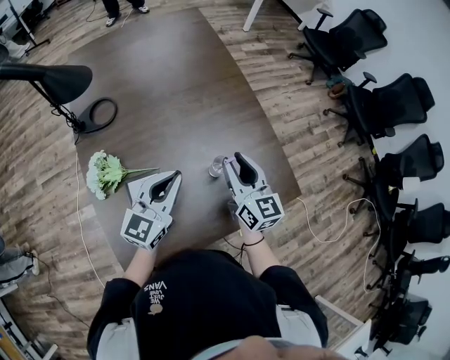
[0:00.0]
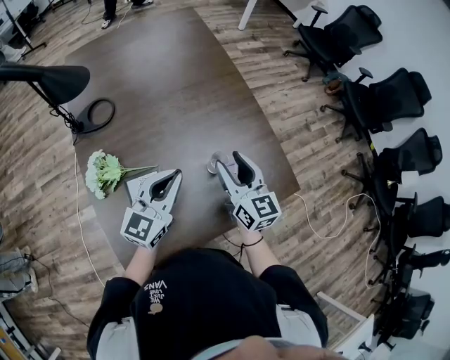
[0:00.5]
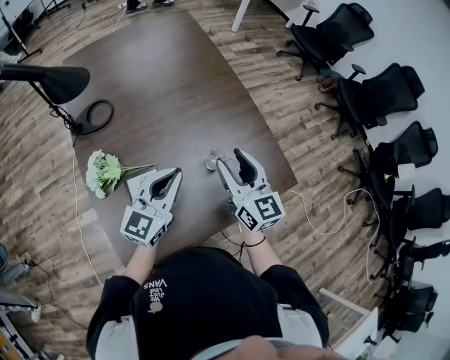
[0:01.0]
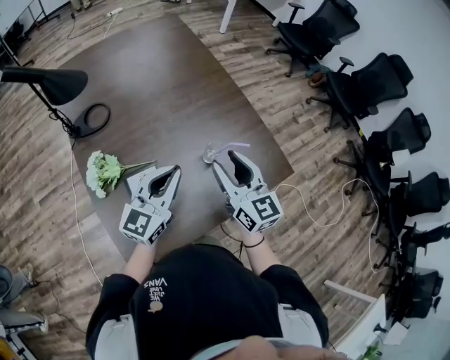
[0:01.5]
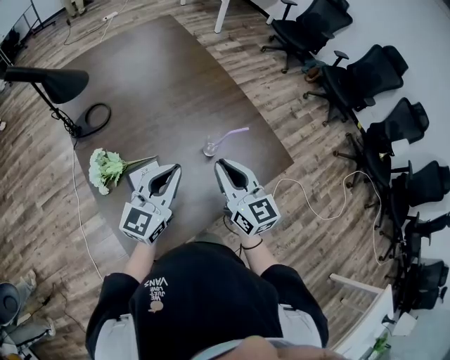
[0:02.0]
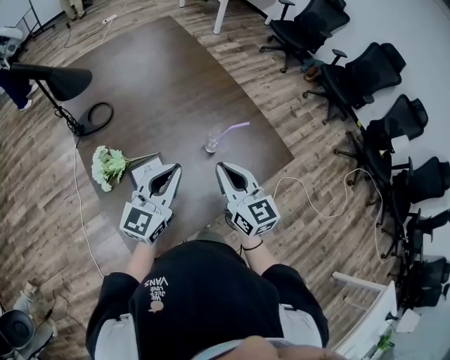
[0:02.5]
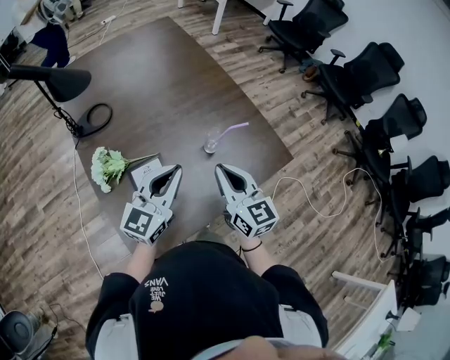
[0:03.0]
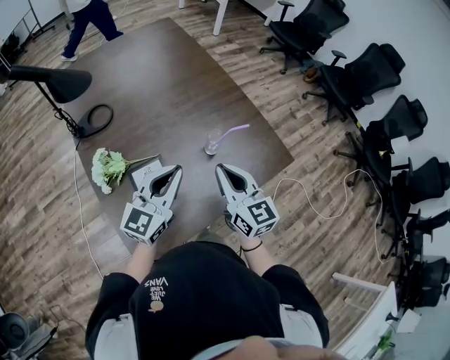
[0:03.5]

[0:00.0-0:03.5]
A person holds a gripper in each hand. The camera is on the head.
0:00.0 to 0:02.0: The left gripper shifts some 10 cm backward. The right gripper moves backward, some 10 cm.
0:02.0 to 0:03.5: There are only small adjustments of the grippers.

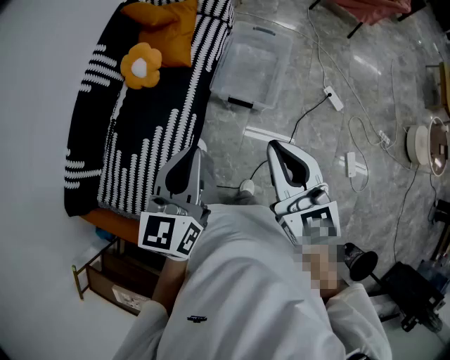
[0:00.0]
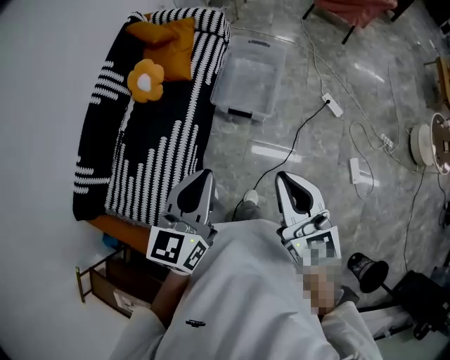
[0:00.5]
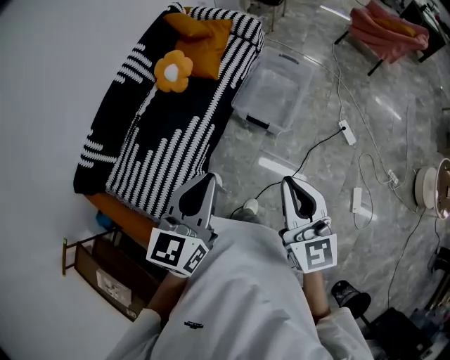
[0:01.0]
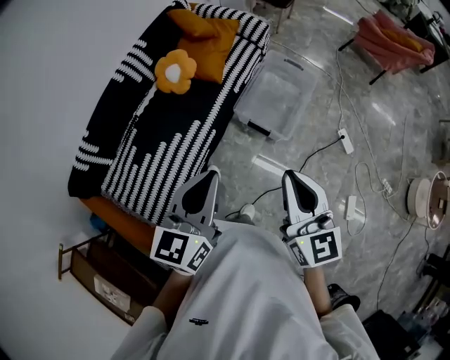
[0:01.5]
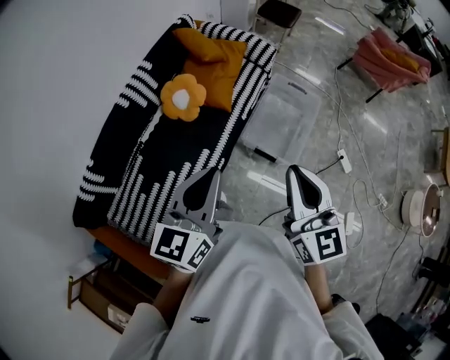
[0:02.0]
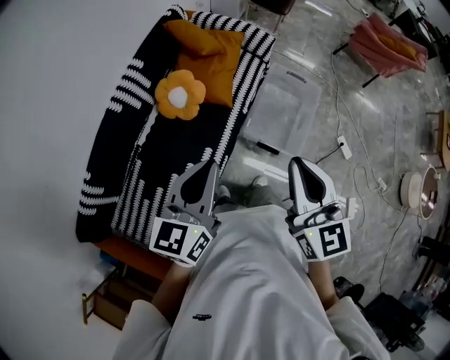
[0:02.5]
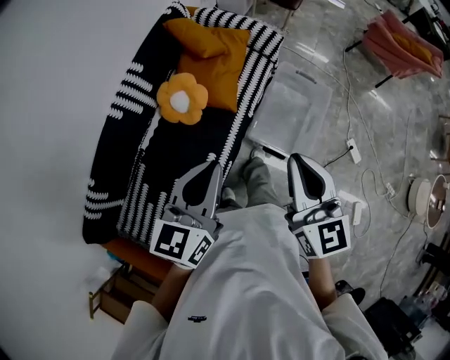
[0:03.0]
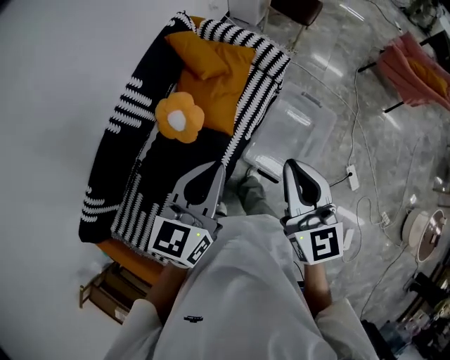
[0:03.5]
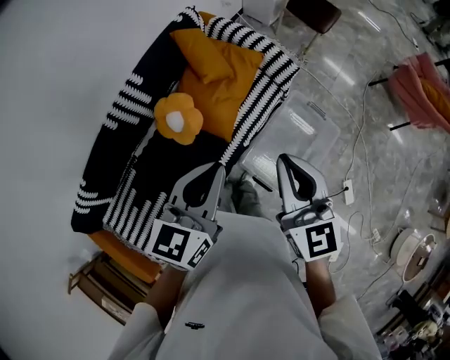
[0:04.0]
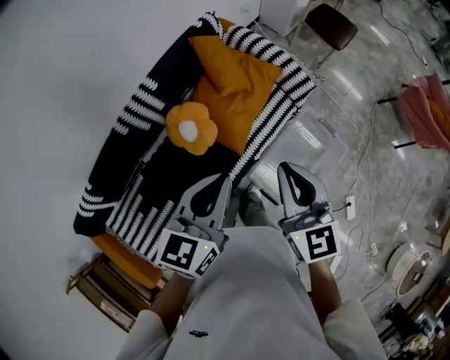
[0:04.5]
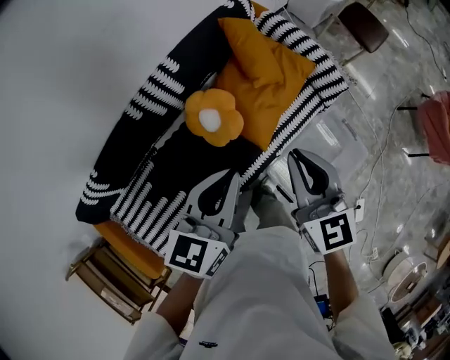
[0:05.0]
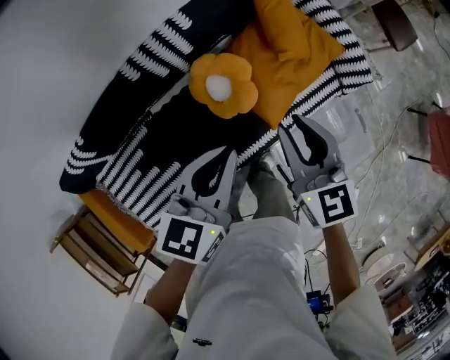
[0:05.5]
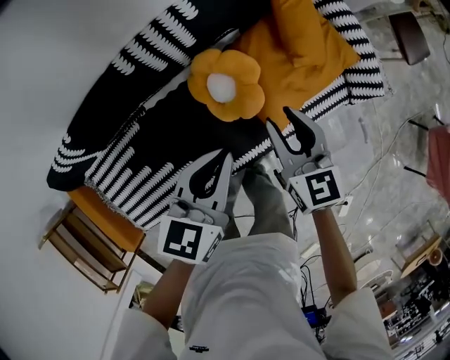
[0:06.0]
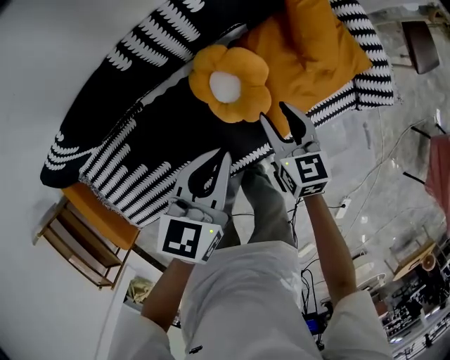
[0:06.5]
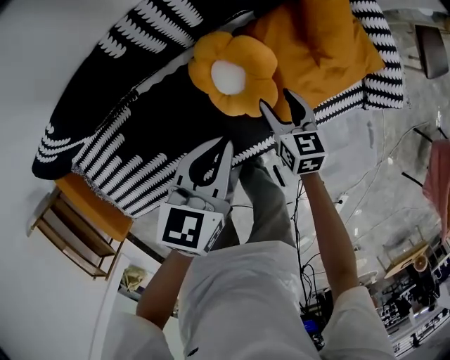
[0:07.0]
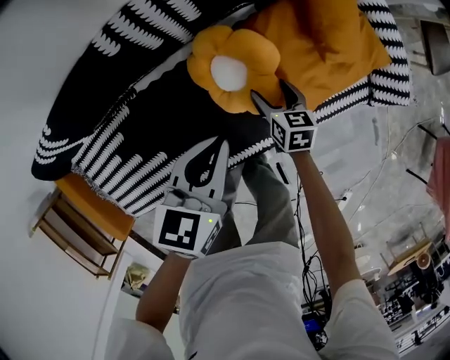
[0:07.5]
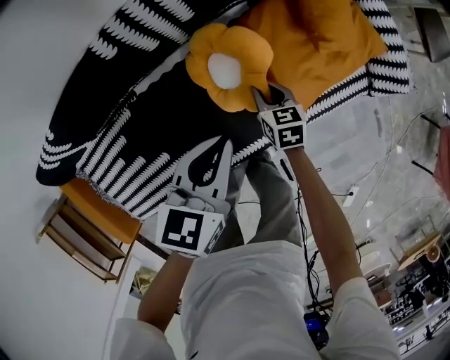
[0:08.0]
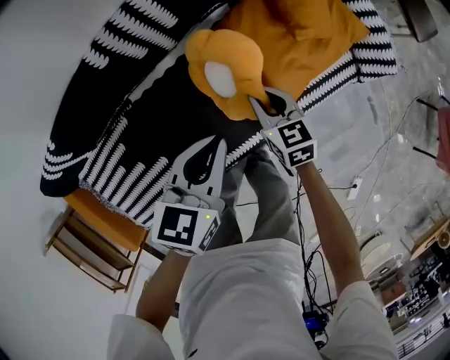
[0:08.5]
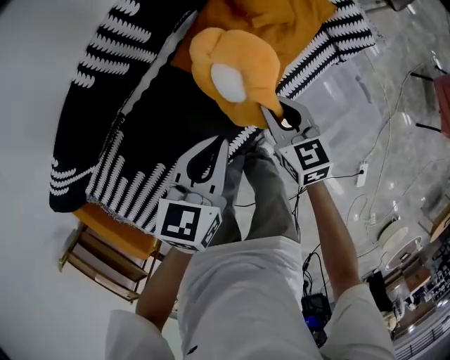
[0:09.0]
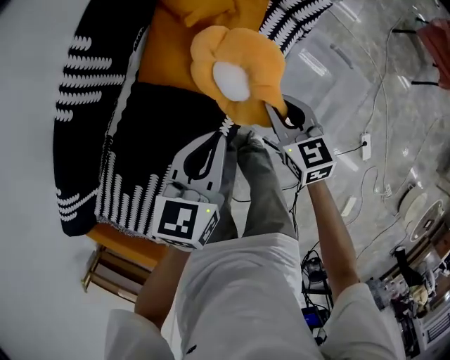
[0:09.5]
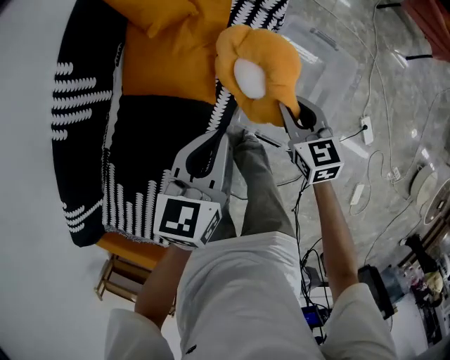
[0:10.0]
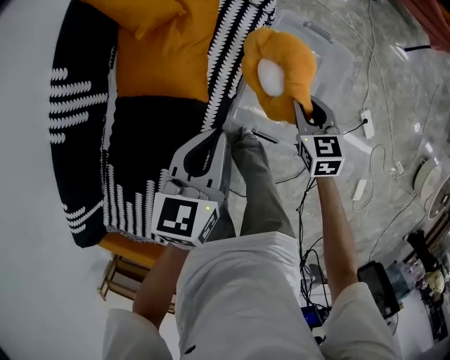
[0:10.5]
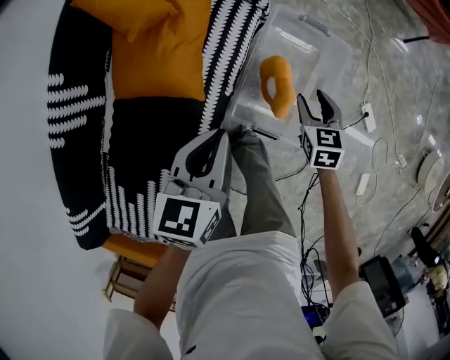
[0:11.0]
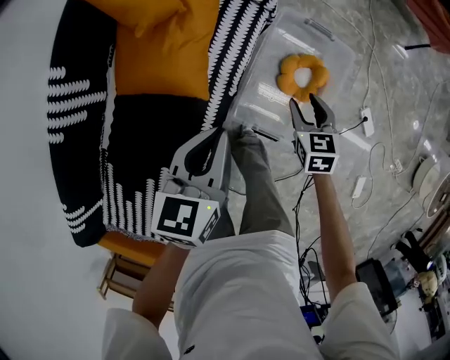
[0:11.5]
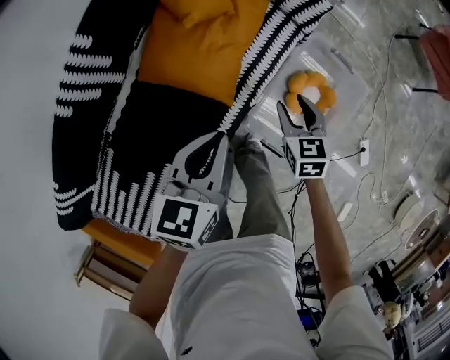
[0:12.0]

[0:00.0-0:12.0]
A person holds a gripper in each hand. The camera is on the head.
0:00.0 to 0:02.0: The left gripper travels to the left and forward by some 15 cm. Meanwhile the right gripper is displaced forward, to the left and upward by some 15 cm.
0:02.0 to 0:04.0: The grippers both shift forward by about 35 cm.
0:04.0 to 0:06.0: The right gripper heads downward, to the left and forward, covering about 40 cm, and changes its angle by about 30 degrees; the left gripper heads to the left, downward and forward, covering roughly 30 cm, and turns by approximately 20 degrees.
0:06.0 to 0:08.0: The right gripper goes about 30 cm downward, rotates some 20 degrees, and opens, then closes once more; the left gripper goes some 10 cm downward.
0:08.0 to 0:10.0: The left gripper changes place by some 30 cm, and changes its angle by roughly 30 degrees; the right gripper changes place by approximately 40 cm, and rotates some 30 degrees.
0:10.0 to 0:12.0: The right gripper reaches approximately 15 cm to the right, then returns; the left gripper goes roughly 5 cm to the left.

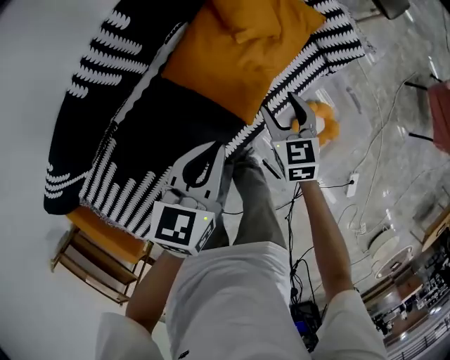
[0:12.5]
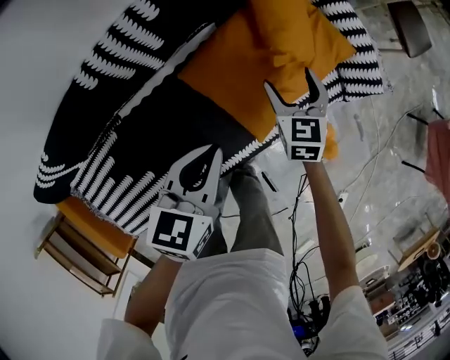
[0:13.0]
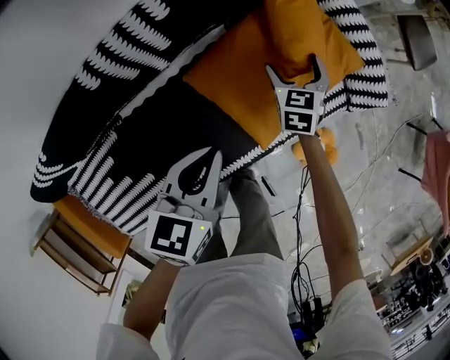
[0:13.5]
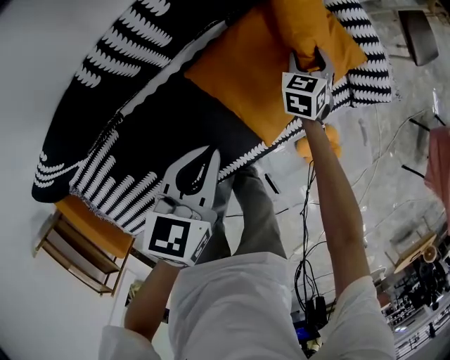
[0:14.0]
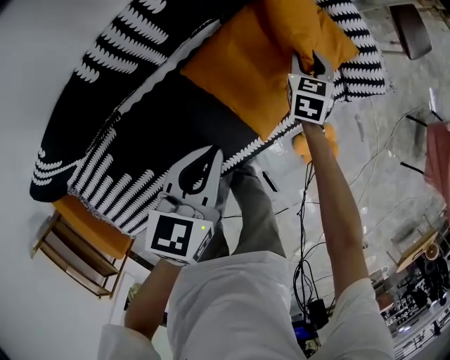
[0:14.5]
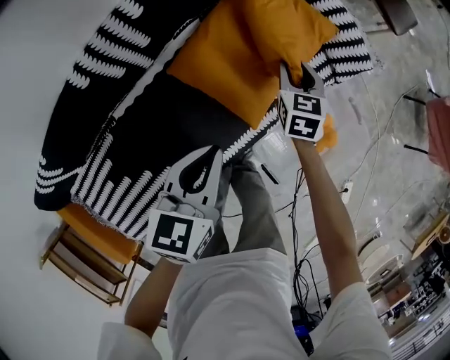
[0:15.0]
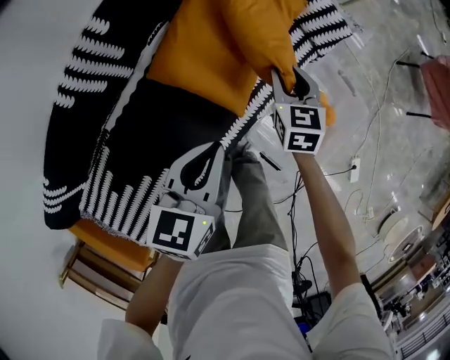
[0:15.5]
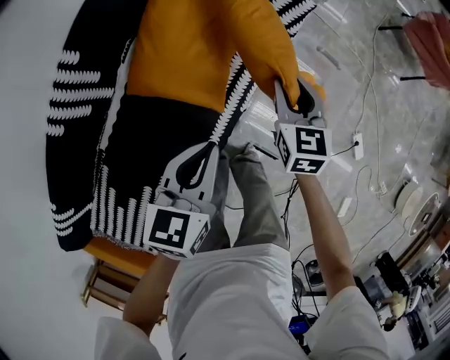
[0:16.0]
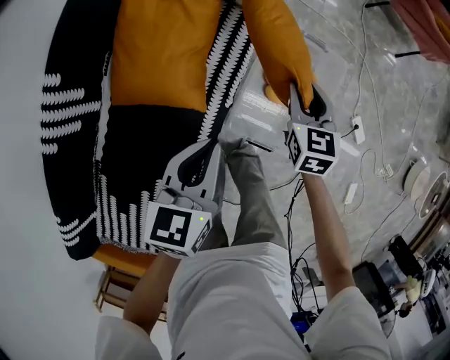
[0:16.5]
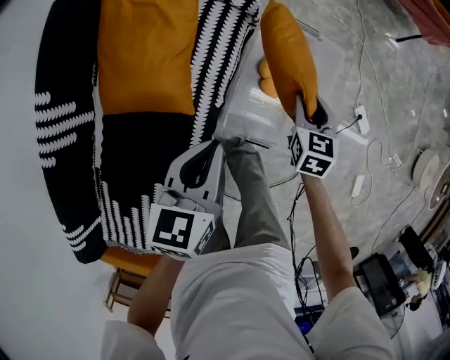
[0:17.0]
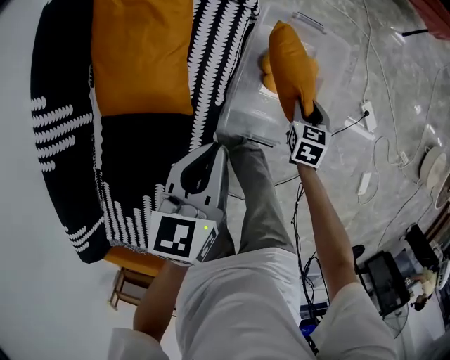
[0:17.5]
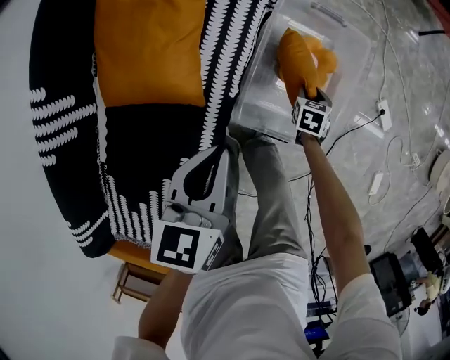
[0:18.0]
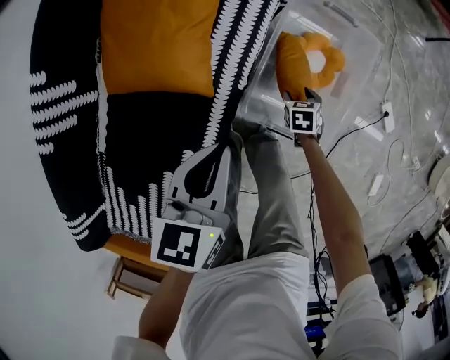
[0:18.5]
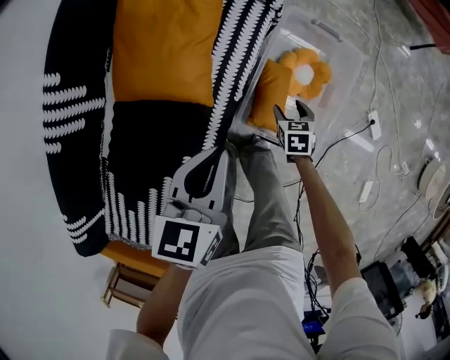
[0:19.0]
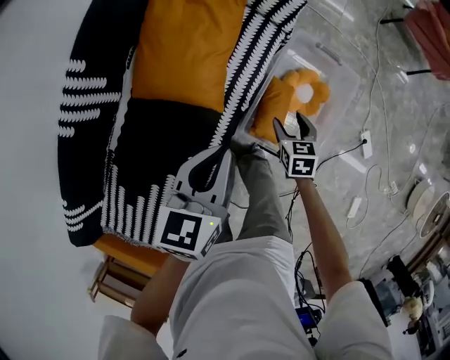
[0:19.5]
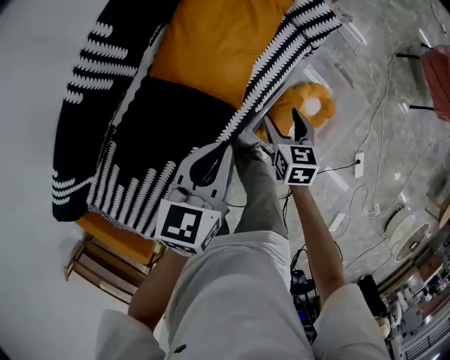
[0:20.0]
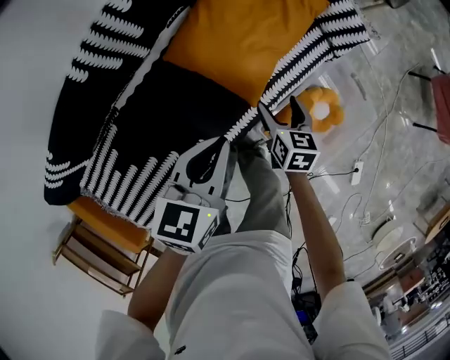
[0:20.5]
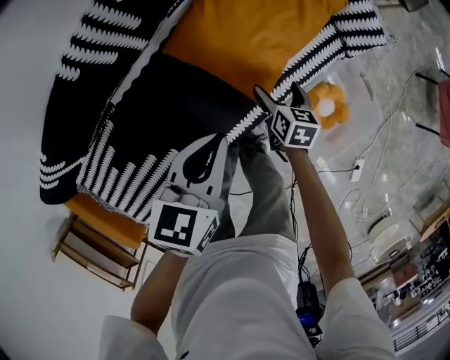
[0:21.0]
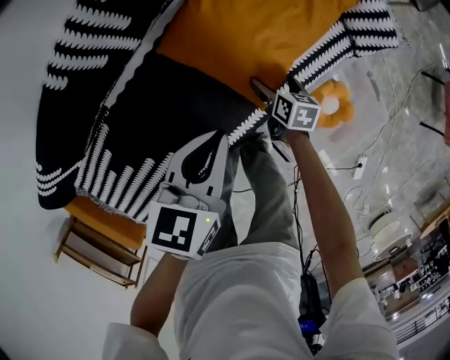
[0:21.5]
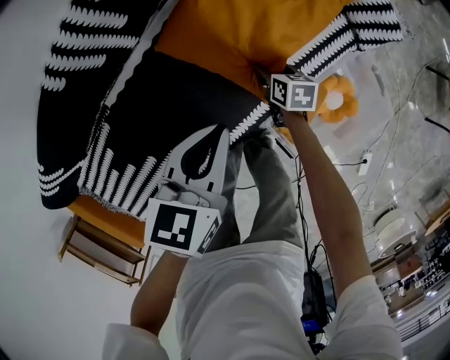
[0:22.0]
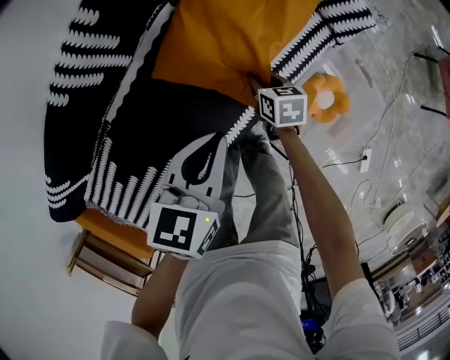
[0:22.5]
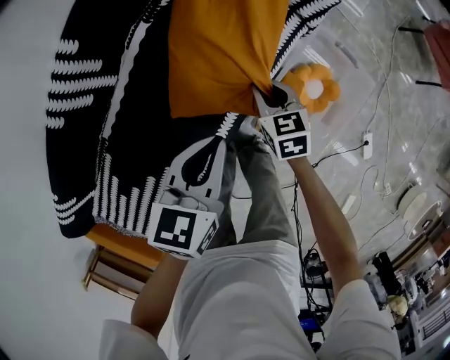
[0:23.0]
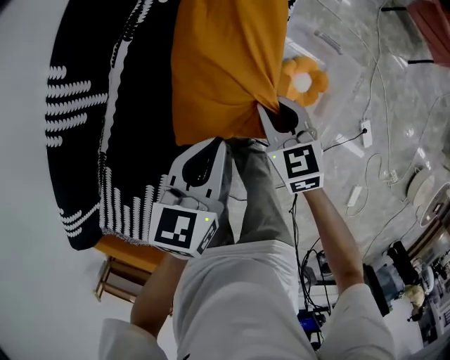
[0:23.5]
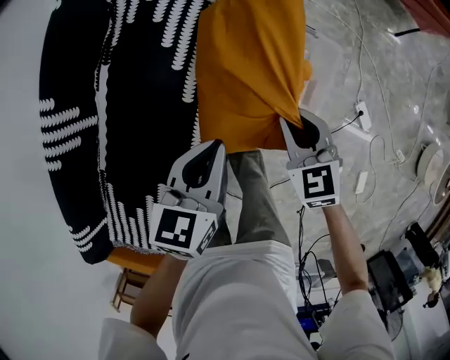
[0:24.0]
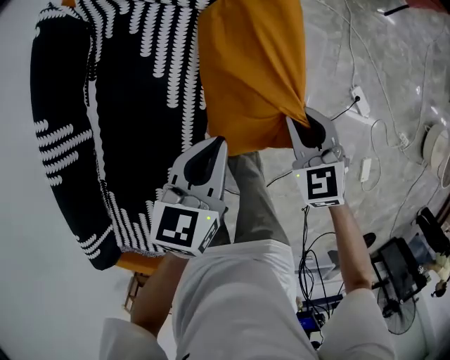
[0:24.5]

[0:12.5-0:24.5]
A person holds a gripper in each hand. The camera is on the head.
0:12.5 to 0:14.5: The right gripper goes some 20 cm forward, and opens and closes again. Meanwhile the left gripper moves to the left, about 10 cm.
0:14.5 to 0:16.5: The right gripper shifts by approximately 40 cm, and changes its angle by roughly 30 degrees. The left gripper ends up roughly 25 cm from where it was, and rotates approximately 30 degrees.
0:16.5 to 0:18.5: The right gripper shifts roughly 35 cm downward, and angles its fingers downward, by roughly 30 degrees; the left gripper travels downward by approximately 5 cm.
0:18.5 to 0:20.5: The right gripper ends up about 35 cm from where it was, and changes its angle by roughly 30 degrees, while the left gripper changes place by some 15 cm, and swivels roughly 20 degrees.
0:20.5 to 0:22.5: The right gripper travels downward and forward by some 10 cm, and closes.
0:22.5 to 0:24.5: The right gripper shifts by roughly 40 cm, and swivels about 40 degrees. The left gripper moves some 30 cm, and turns by approximately 30 degrees.
